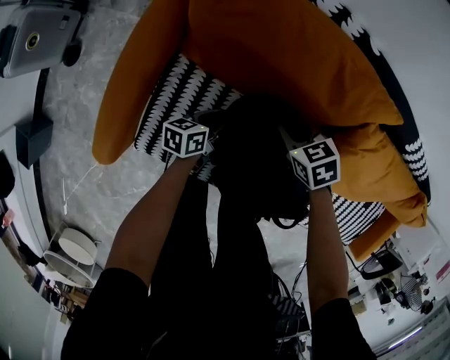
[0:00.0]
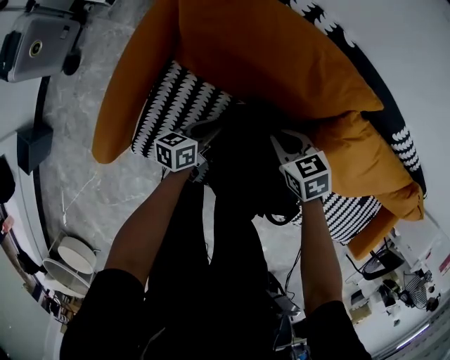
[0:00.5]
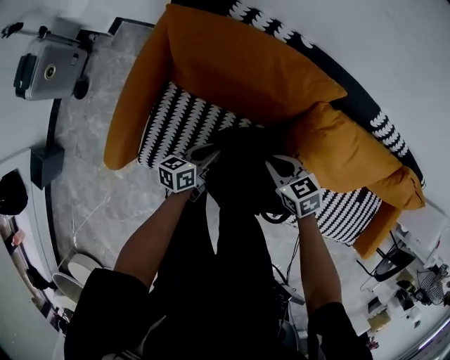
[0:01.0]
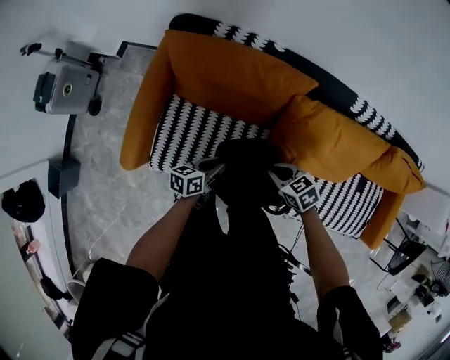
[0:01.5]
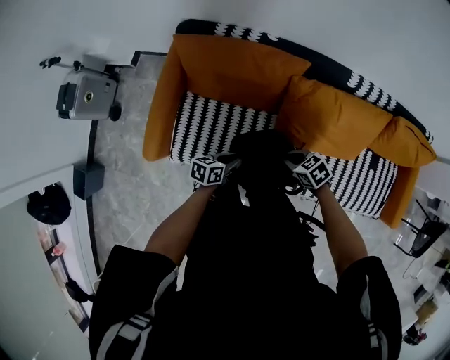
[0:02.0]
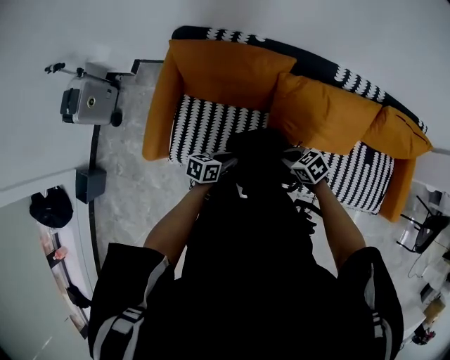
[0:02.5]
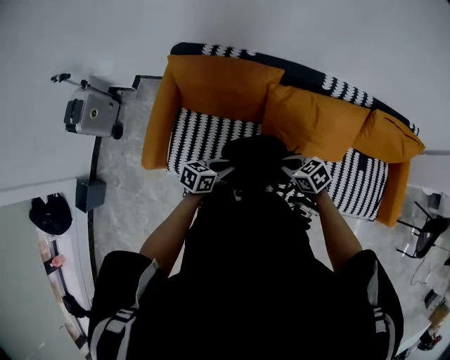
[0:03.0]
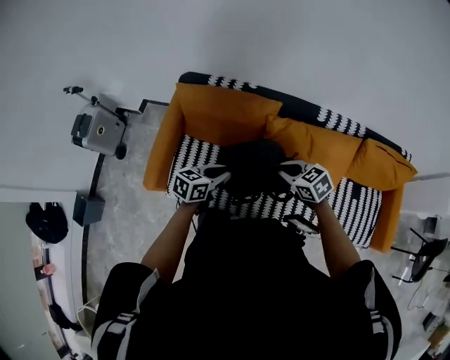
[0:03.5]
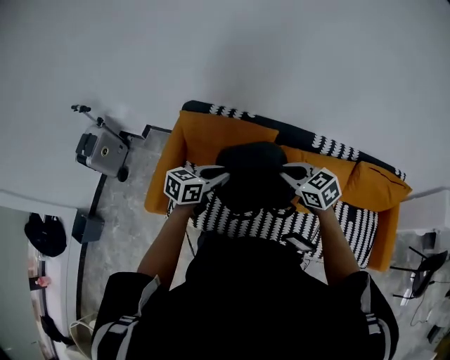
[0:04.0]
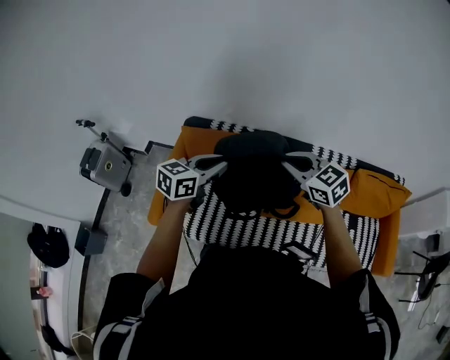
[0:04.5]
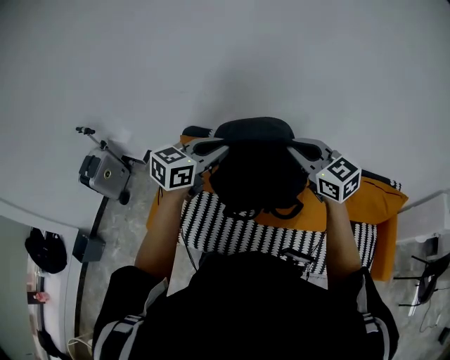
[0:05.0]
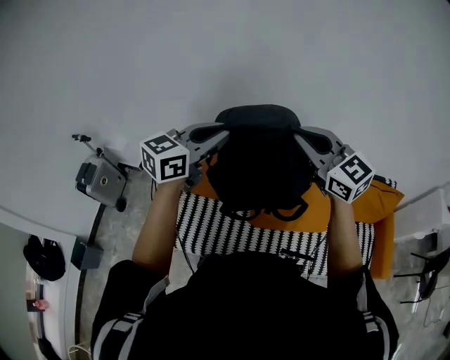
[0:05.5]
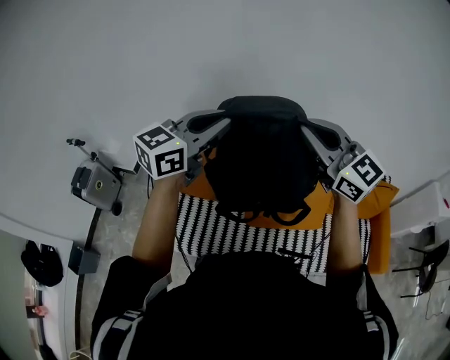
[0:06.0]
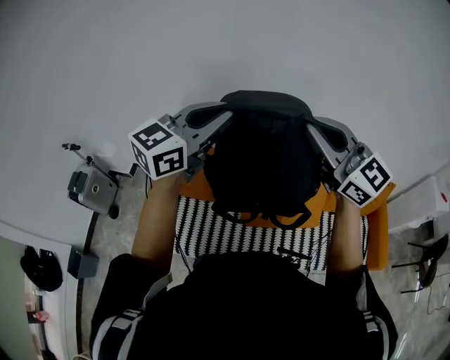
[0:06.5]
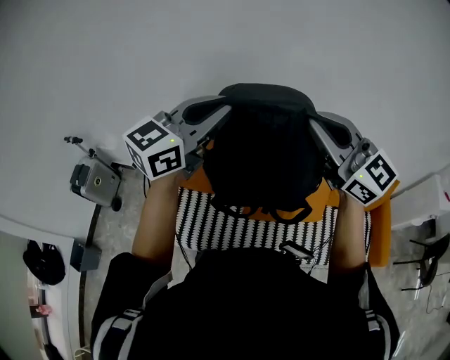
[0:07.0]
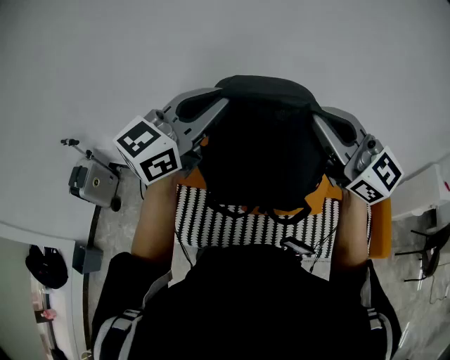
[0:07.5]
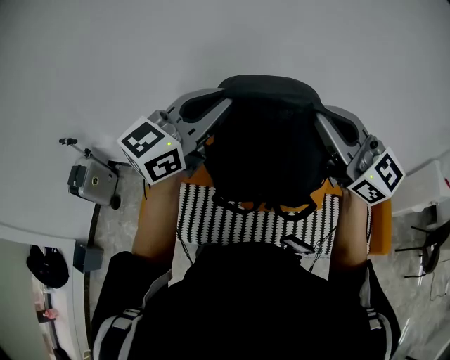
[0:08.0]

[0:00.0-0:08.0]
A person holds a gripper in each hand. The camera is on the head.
0:00.0 to 0:02.0: The right gripper shifts by approximately 30 cm, while the left gripper shifts some 20 cm upward.
0:02.0 to 0:04.0: Both grippers travel together upward, about 30 cm. The left gripper turns by about 30 degrees. Meanwhile the right gripper swivels approximately 30 degrees.
0:04.0 to 0:06.0: The grippers both shift upward by about 30 cm. The left gripper turns by some 40 degrees, while the right gripper tilts its fingers about 40 degrees upward.
0:06.0 to 0:08.0: The left gripper changes place by some 5 cm, while the right gripper shifts by about 5 cm.

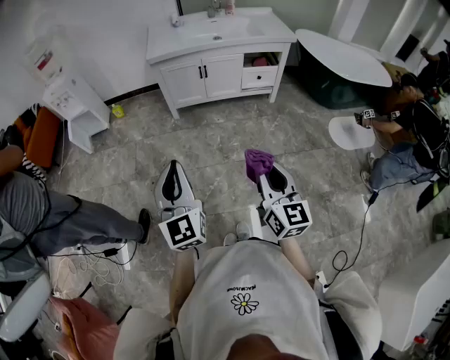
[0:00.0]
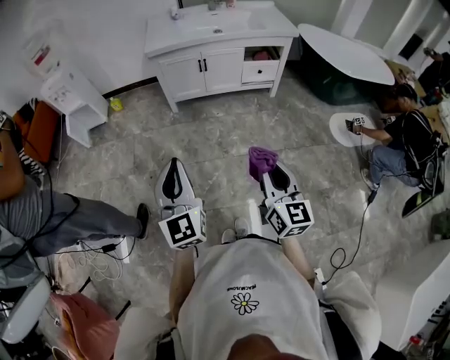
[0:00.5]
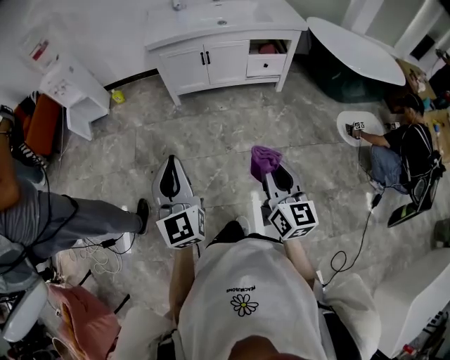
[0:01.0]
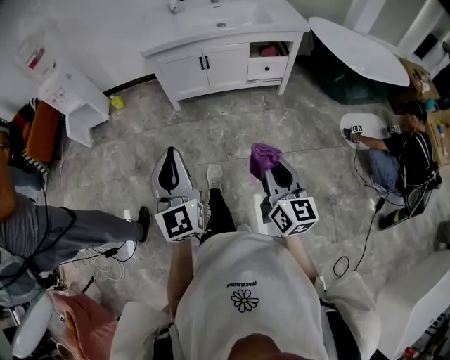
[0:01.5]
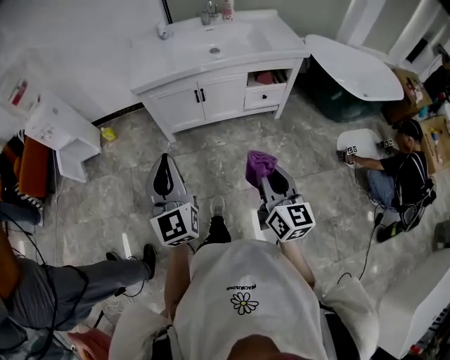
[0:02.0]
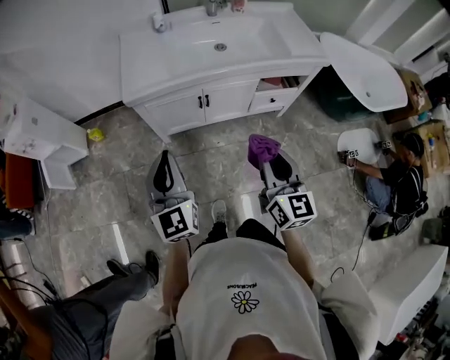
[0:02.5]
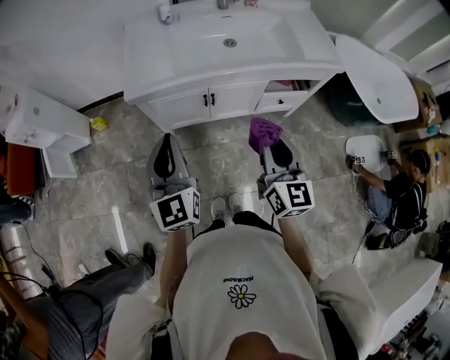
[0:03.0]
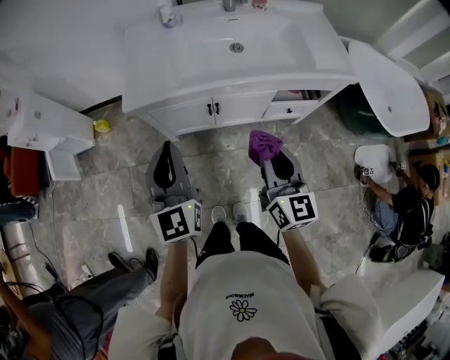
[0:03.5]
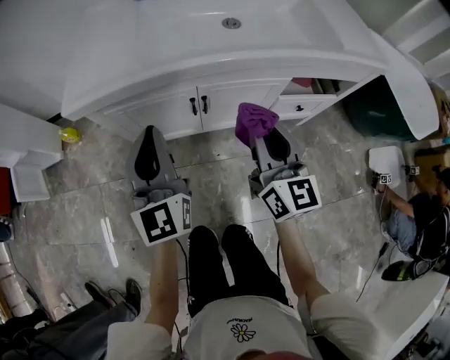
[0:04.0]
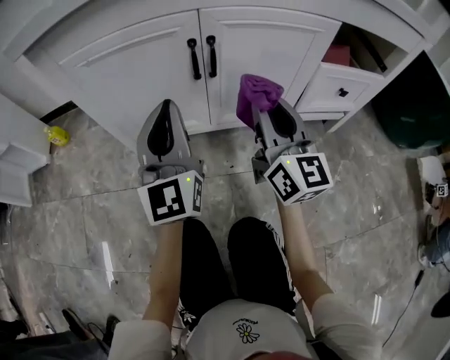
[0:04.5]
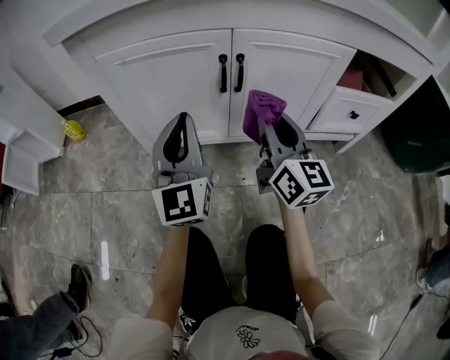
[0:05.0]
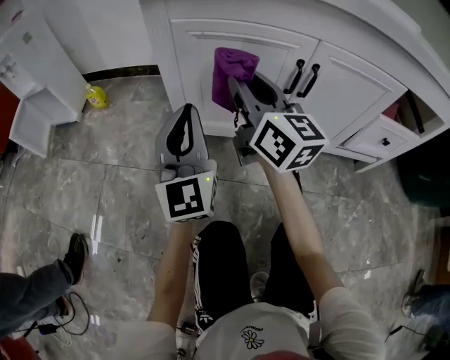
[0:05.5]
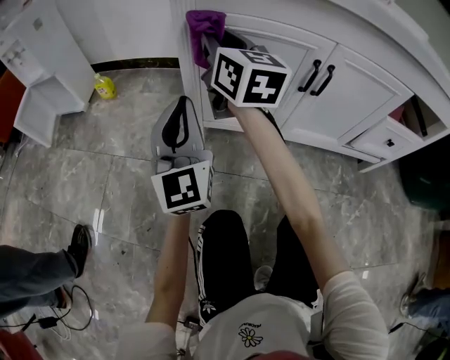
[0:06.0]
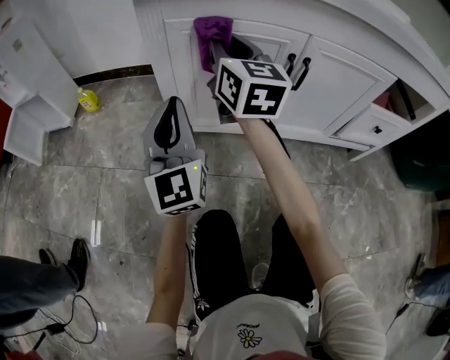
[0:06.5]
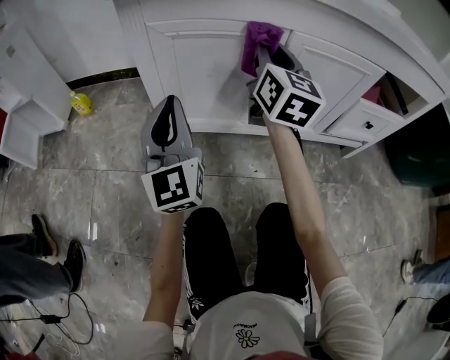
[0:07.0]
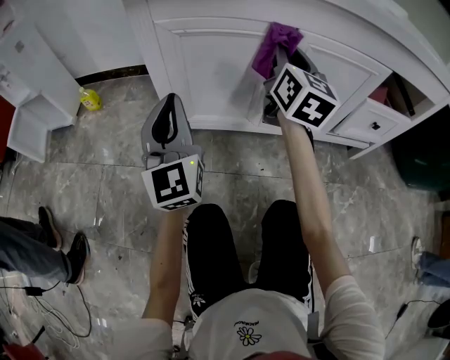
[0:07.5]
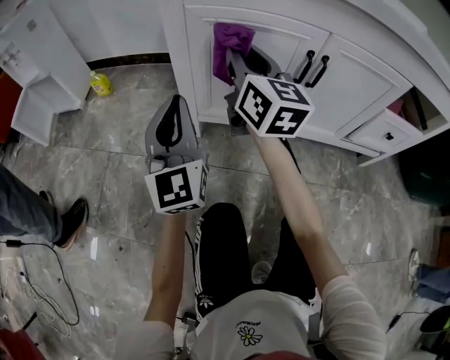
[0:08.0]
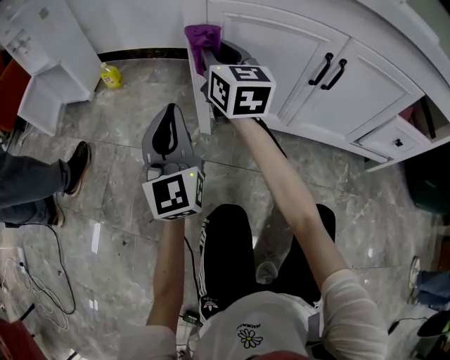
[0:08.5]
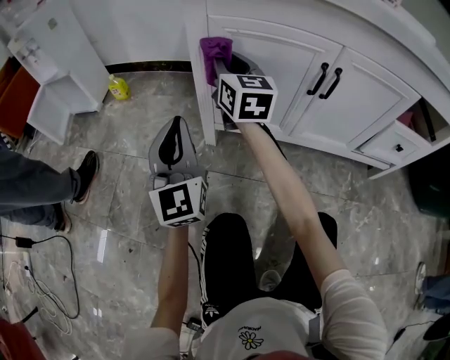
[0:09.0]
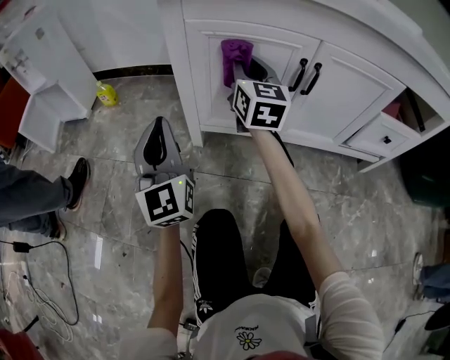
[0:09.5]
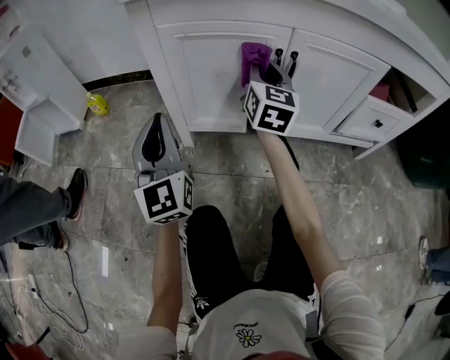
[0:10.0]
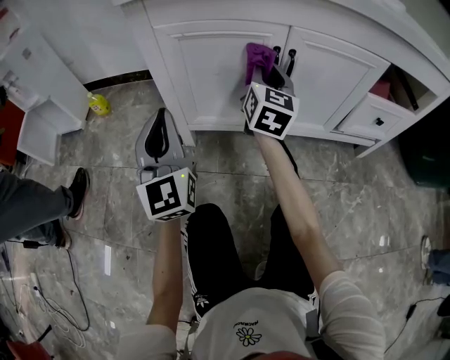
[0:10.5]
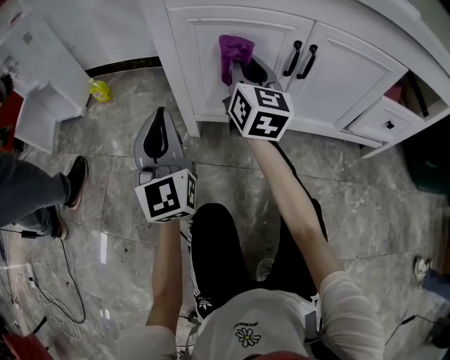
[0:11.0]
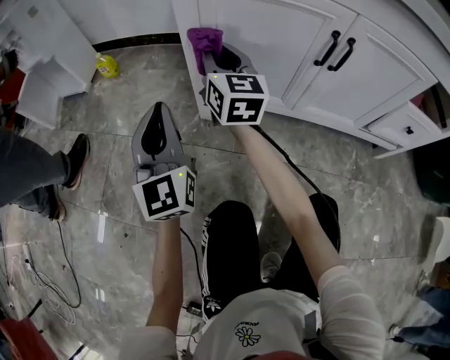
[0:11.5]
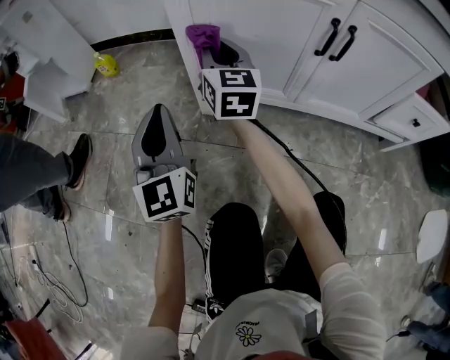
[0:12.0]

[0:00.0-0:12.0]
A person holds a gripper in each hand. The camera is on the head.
0:00.0 to 0:02.0: The two grippers go some 30 cm forward.
0:02.0 to 0:04.0: The two grippers travel together, forward, roughly 40 cm. The grippers both shift downward by approximately 20 cm.
0:04.0 to 0:06.0: The left gripper moves downward and to the left, about 30 cm. Meanwhile the right gripper goes roughly 40 cm to the left, forward and downward, and changes its angle by some 20 degrees.
0:06.0 to 0:08.0: The right gripper travels to the right and back again, approximately 25 cm each way.
0:08.0 to 0:10.0: The right gripper heads to the right, covering roughly 15 cm, and swivels about 20 degrees.
0:10.0 to 0:12.0: The right gripper heads to the left and downward, covering approximately 20 cm; the left gripper moves downward and to the left, some 10 cm.

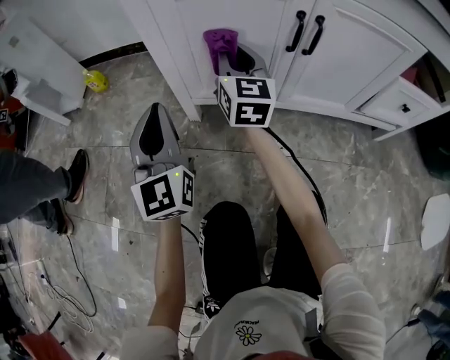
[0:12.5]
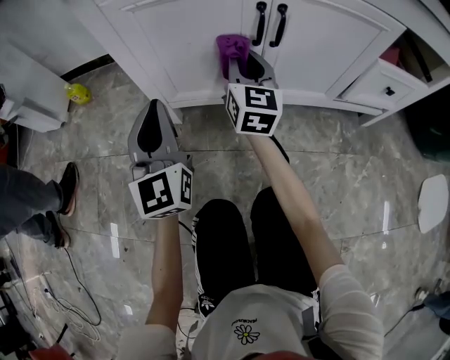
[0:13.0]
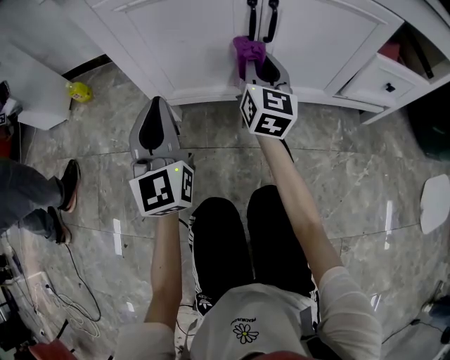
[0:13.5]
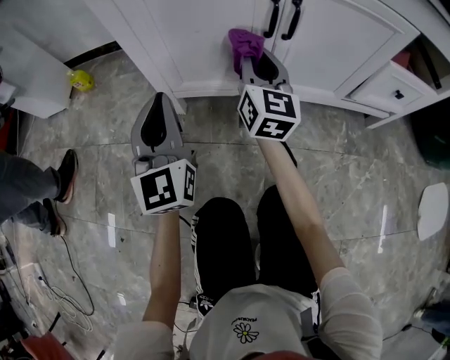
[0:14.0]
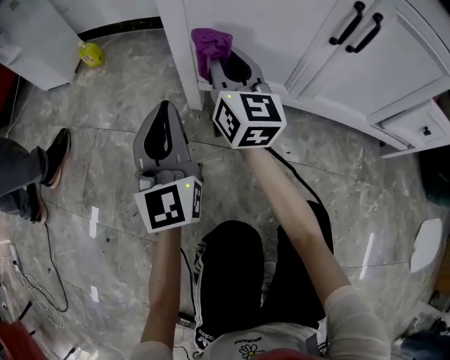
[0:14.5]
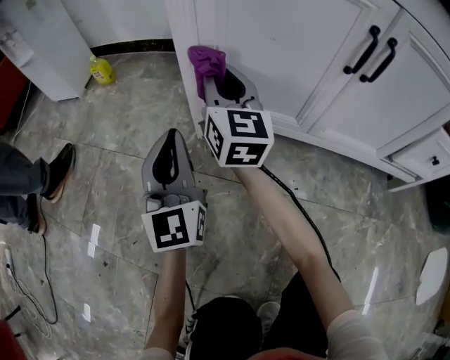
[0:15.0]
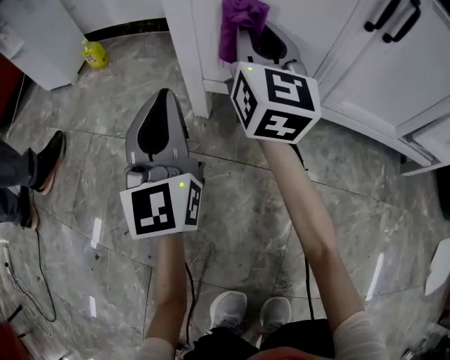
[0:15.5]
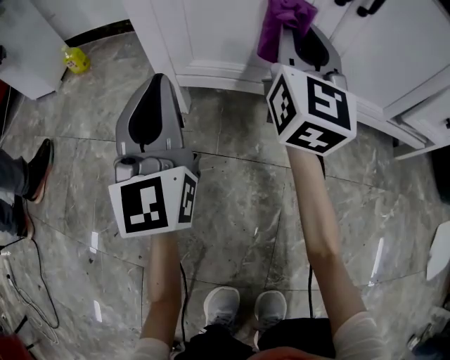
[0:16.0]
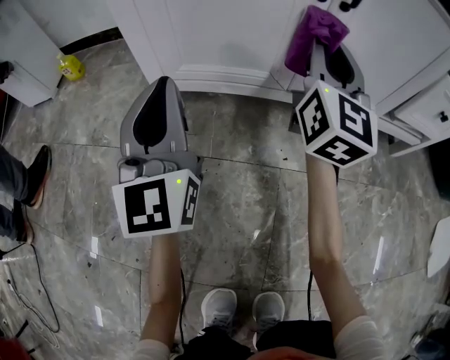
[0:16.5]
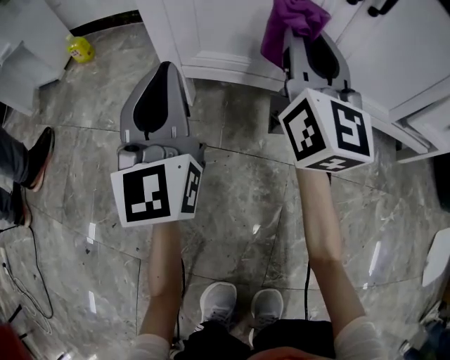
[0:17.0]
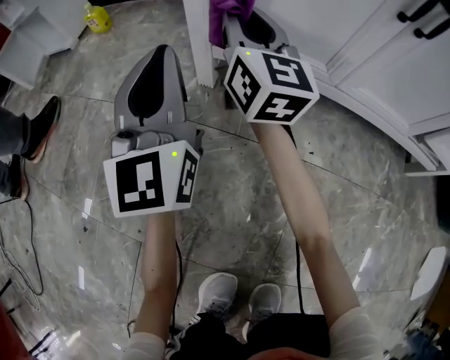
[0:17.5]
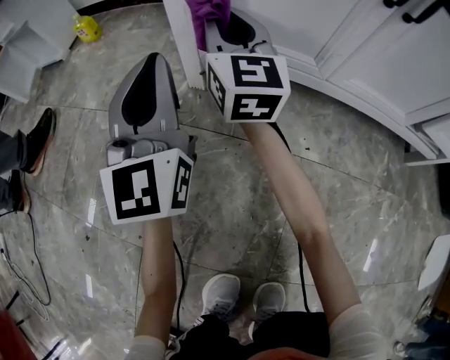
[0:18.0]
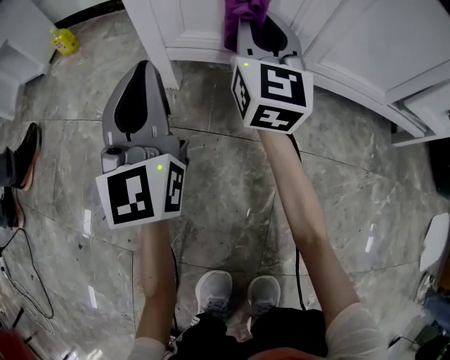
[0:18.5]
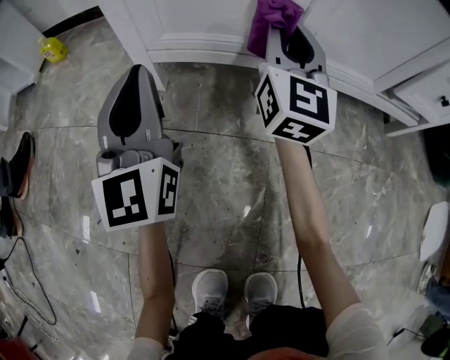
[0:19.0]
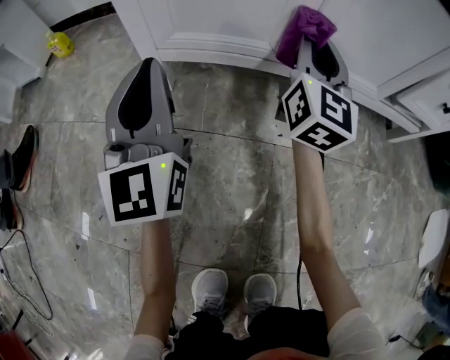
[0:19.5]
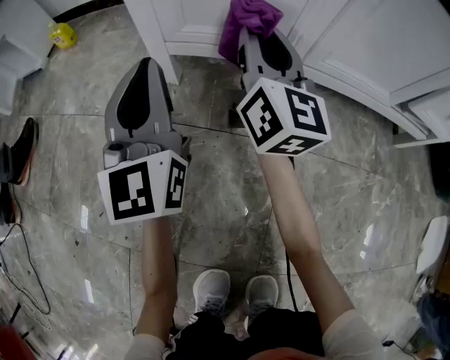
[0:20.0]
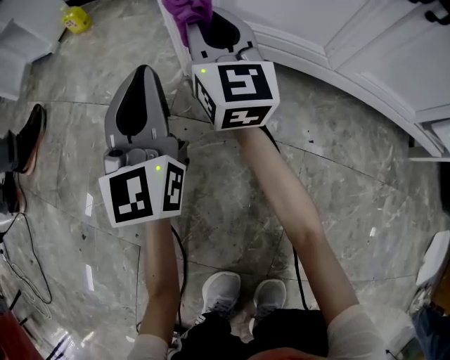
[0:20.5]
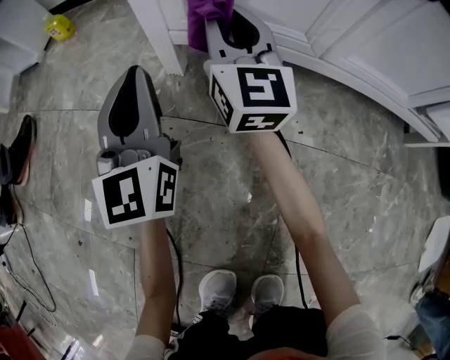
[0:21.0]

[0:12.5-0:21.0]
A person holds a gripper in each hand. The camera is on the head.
0:12.5 to 0:14.5: Both grippers travel together downward, some 5 cm. The left gripper reaches roughly 10 cm to the right, then returns. Meanwhile the right gripper reaches roughly 15 cm to the right, then returns.
0:14.5 to 0:16.5: The right gripper moves to the right, roughly 25 cm, and turns by roughly 30 degrees. The left gripper moves to the right, roughly 10 cm.
0:16.5 to 0:19.0: The right gripper travels downward by roughly 5 cm, and moves approximately 25 cm to the left and comes back, while the left gripper reaches approximately 10 cm to the left, then returns.
0:19.0 to 0:21.0: The left gripper heads to the left and downward, covering some 10 cm. Meanwhile the right gripper swings left and right, some 25 cm each way, with 2 reversals, and swivels some 20 degrees.
